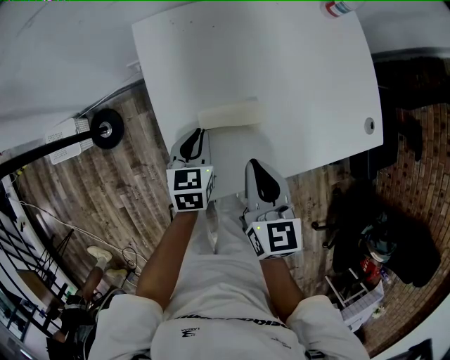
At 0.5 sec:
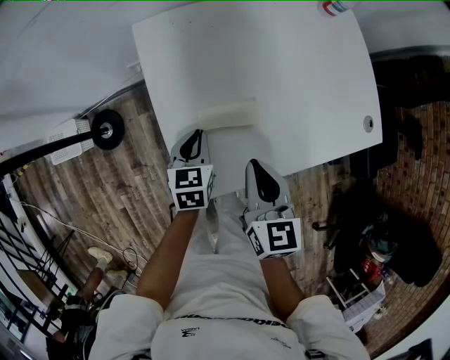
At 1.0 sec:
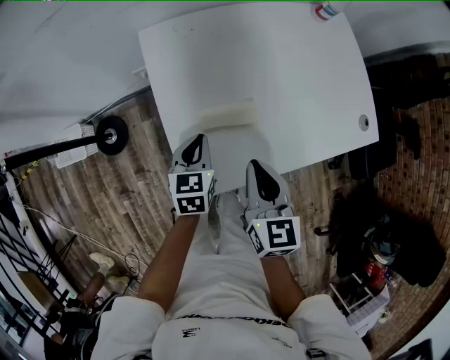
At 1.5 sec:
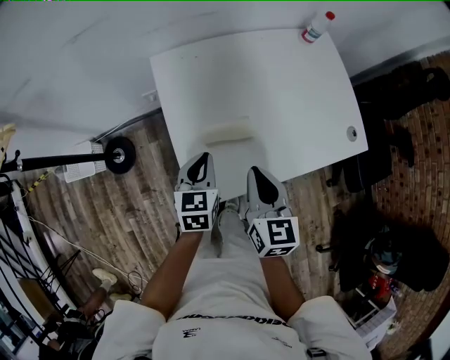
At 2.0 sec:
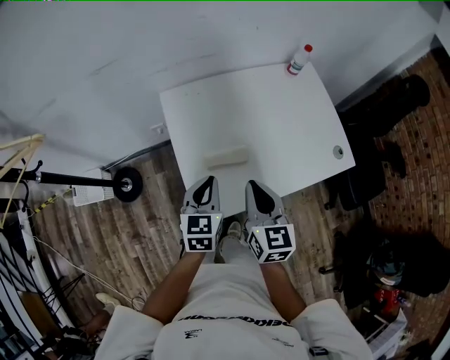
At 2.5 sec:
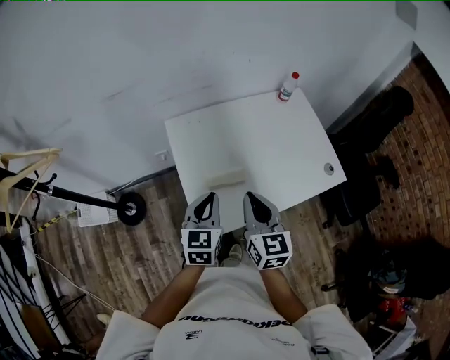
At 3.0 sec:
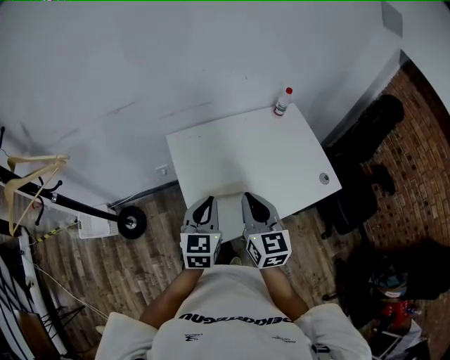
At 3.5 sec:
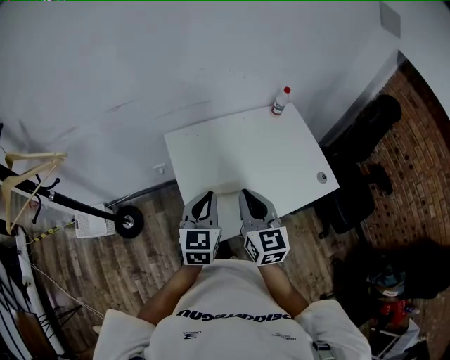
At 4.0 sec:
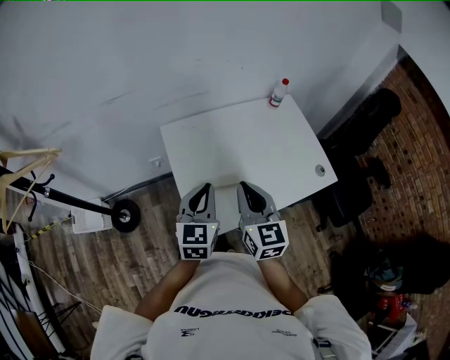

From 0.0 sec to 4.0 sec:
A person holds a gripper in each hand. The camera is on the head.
From 0.0 sec to 2.0 sec: The right gripper heads upward, covering roughly 15 cm, while the left gripper heads upward and backward, covering approximately 20 cm.
From 2.0 sec to 4.0 sec: The two grippers go approximately 10 cm upward.

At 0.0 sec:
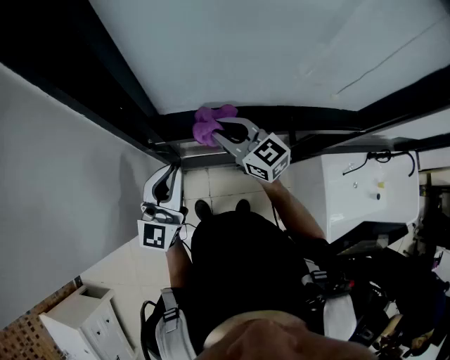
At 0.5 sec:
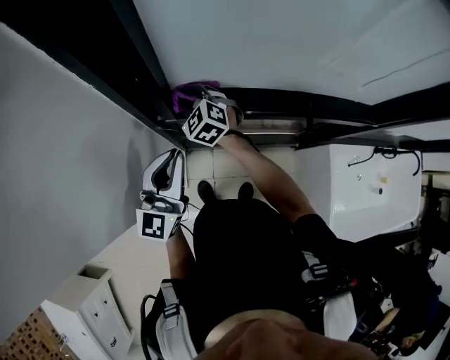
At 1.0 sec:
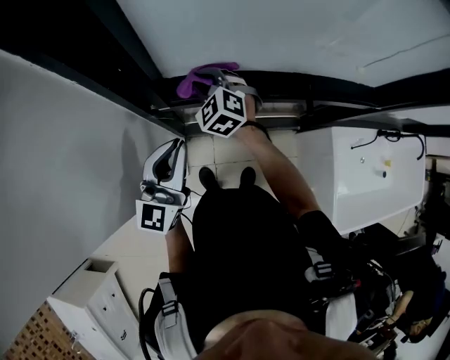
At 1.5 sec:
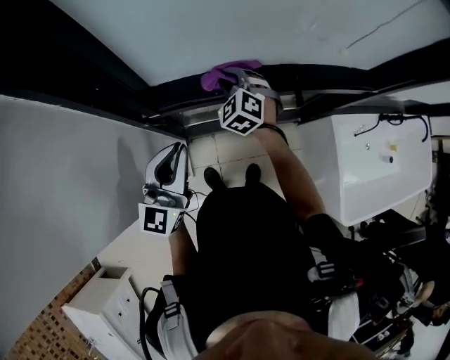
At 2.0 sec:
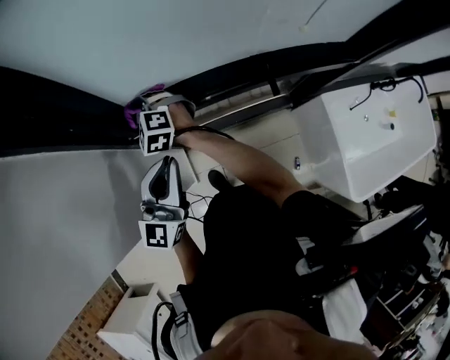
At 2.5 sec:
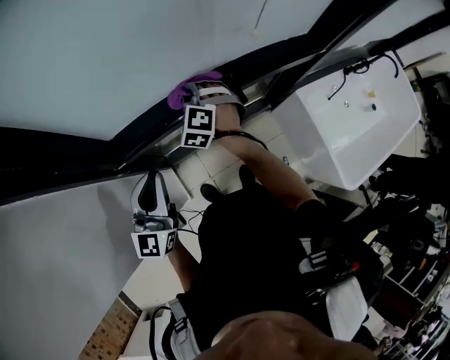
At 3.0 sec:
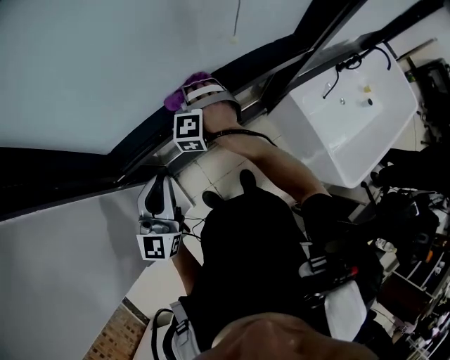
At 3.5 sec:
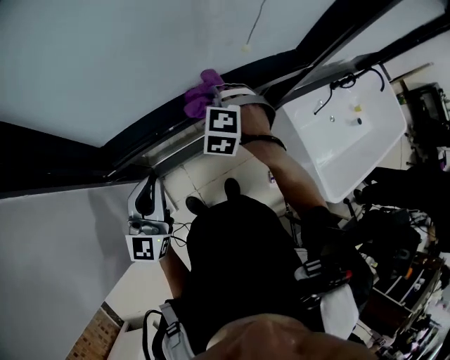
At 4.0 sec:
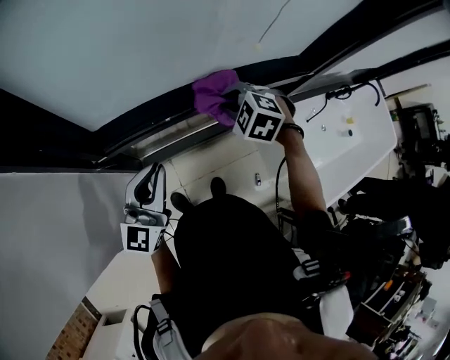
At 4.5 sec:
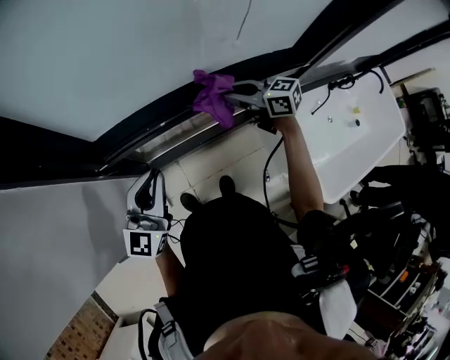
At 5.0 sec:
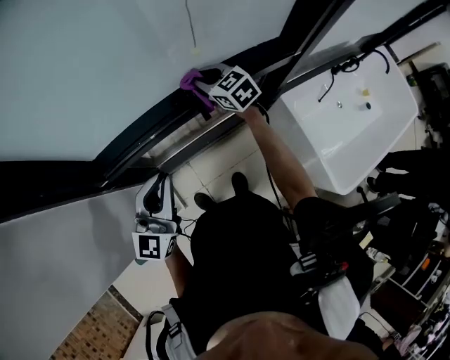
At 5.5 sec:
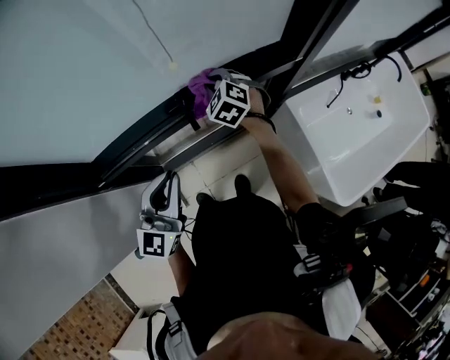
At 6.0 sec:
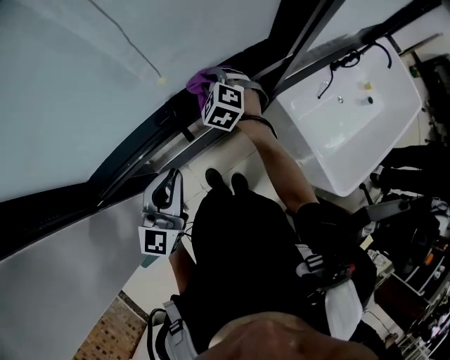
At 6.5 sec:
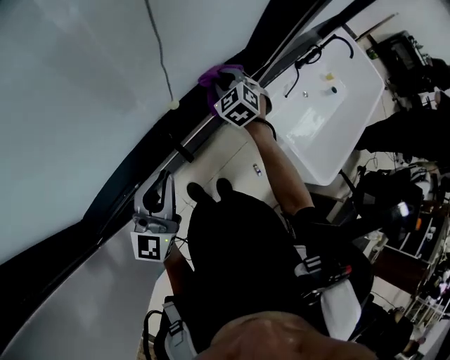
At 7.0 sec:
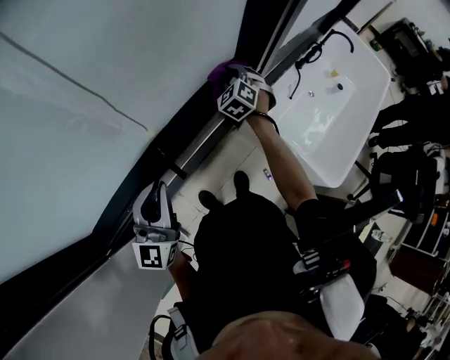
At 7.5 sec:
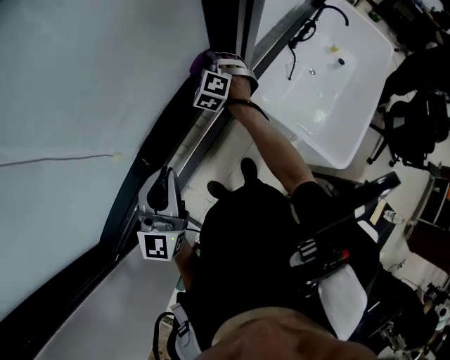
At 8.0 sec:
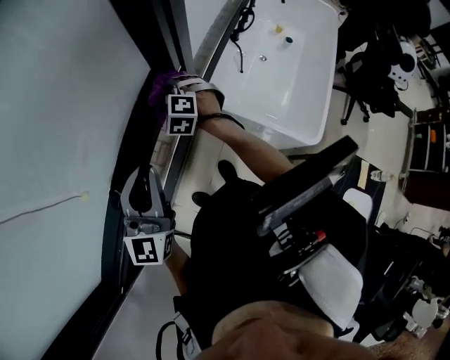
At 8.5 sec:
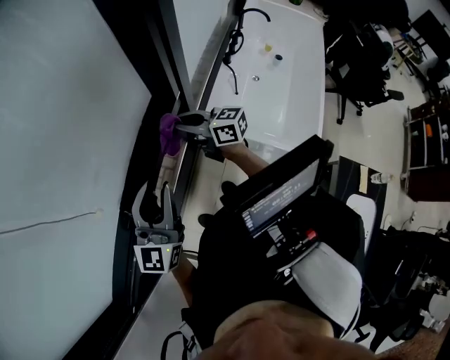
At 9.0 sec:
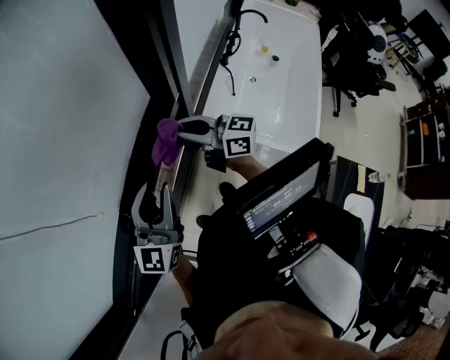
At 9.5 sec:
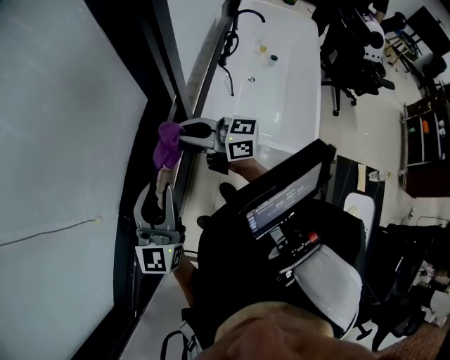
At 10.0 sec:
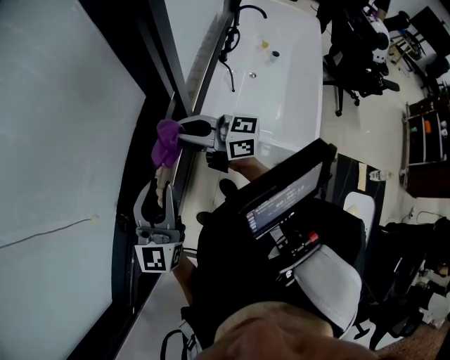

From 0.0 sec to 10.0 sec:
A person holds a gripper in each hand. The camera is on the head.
From 0.0 sec to 2.0 sec: The right gripper swings left and right, roughly 20 cm each way, with 2 reversals, and swivels roughly 40 degrees.
From 2.0 sec to 4.0 sec: The left gripper moves roughly 5 cm. Meanwhile the right gripper changes place by roughly 40 cm, and swivels roughly 30 degrees.
From 4.0 sec to 6.0 sec: The right gripper ends up roughly 20 cm from where it was, and rotates about 30 degrees. Meanwhile the left gripper shifts by some 15 cm.
From 6.0 sec to 8.0 sec: The left gripper ends up about 20 cm from where it was, and rotates approximately 20 degrees, while the right gripper shifts by approximately 25 cm, and rotates some 20 degrees.
From 8.0 sec to 10.0 sec: The right gripper is displaced upward and backward by roughly 20 cm, and points its fingers approximately 60 degrees further upward.

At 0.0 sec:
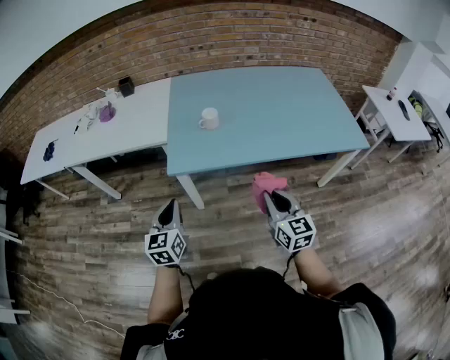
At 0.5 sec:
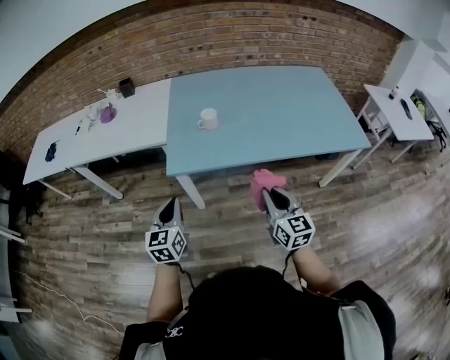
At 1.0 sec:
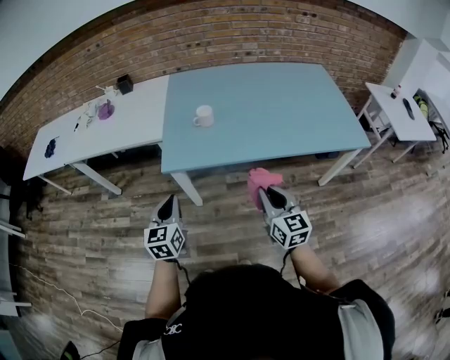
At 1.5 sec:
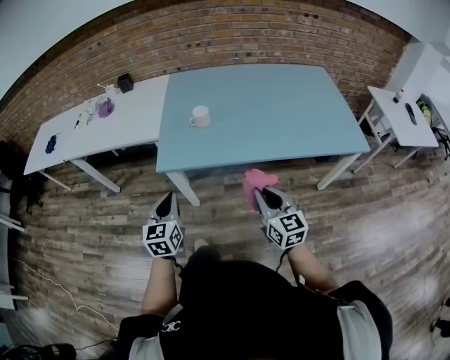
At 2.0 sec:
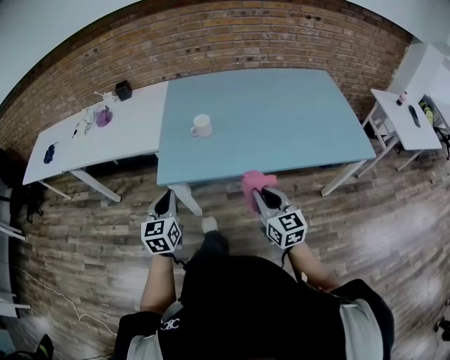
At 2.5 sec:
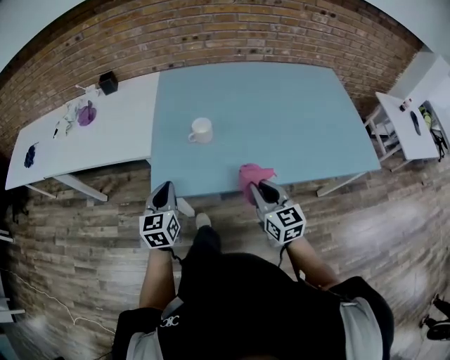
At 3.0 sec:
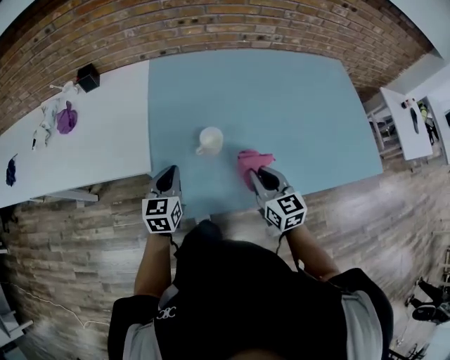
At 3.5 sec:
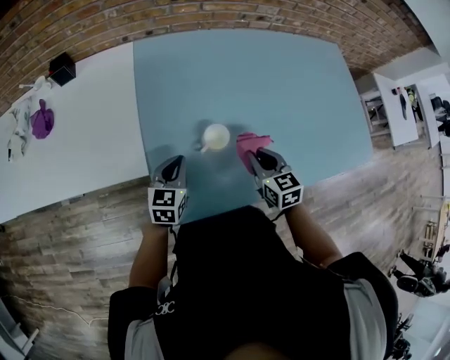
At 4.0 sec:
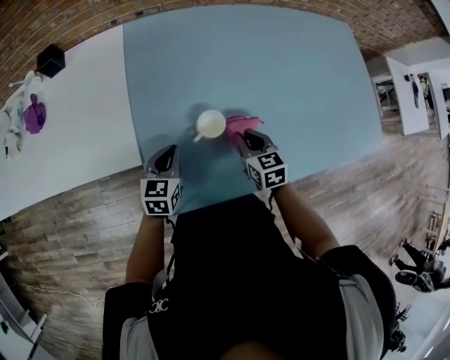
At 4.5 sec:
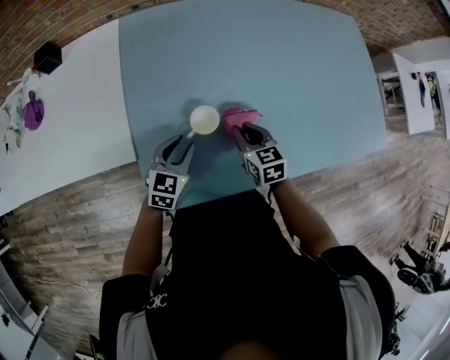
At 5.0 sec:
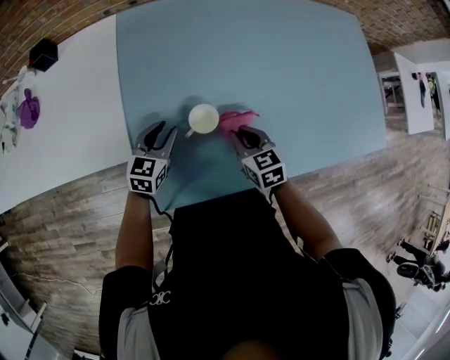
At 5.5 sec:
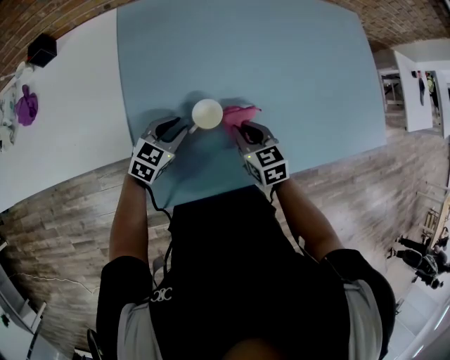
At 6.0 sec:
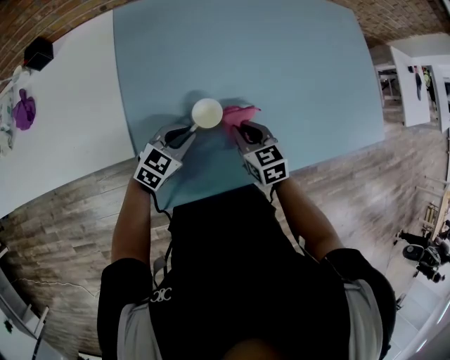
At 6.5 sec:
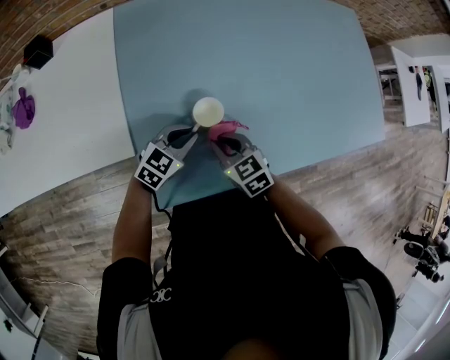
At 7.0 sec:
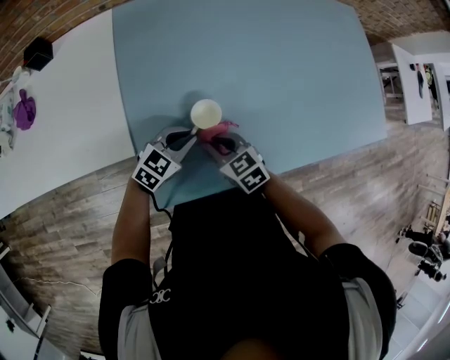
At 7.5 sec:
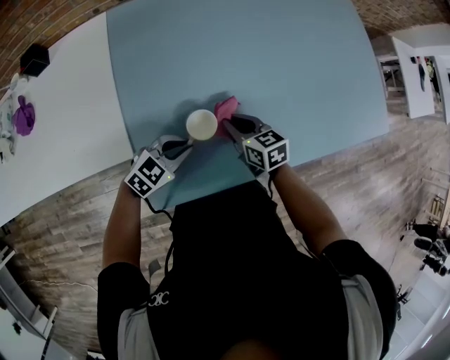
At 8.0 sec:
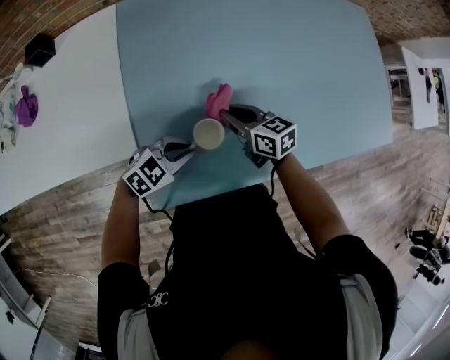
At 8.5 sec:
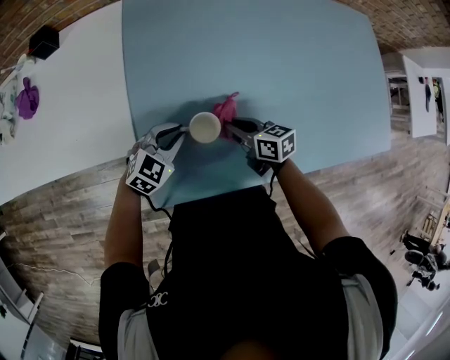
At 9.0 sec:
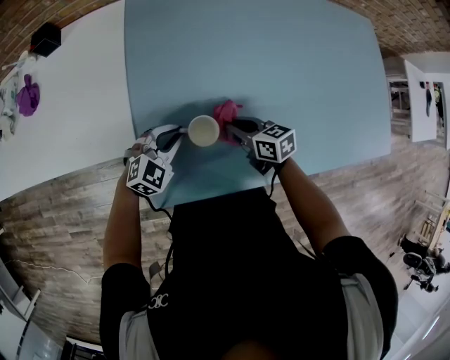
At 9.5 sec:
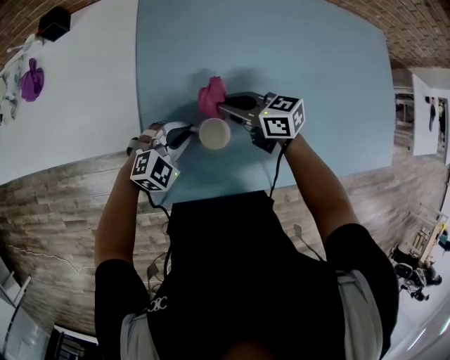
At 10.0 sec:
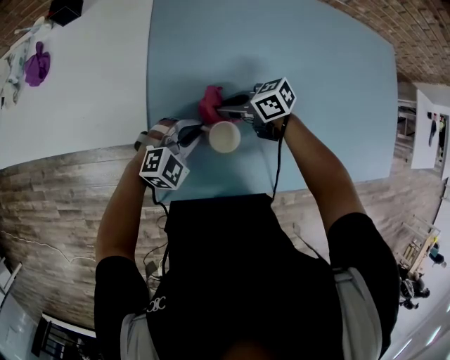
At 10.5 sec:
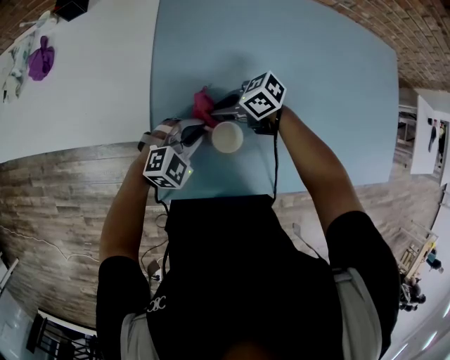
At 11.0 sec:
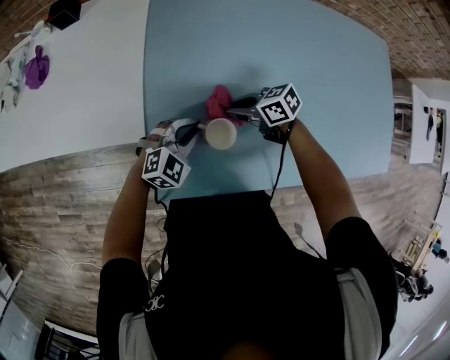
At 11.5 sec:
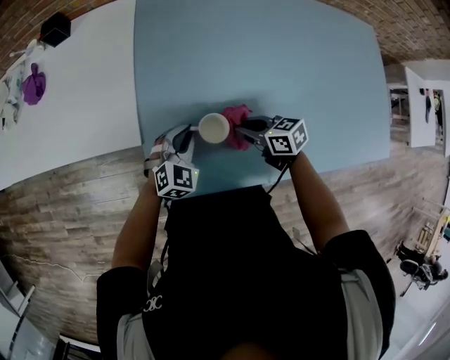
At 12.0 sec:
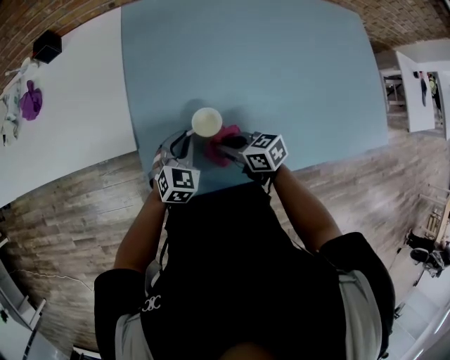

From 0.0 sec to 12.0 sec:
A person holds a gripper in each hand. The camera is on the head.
From 0.0 sec to 2.0 sec: The left gripper goes about 10 cm forward and to the right. Meanwhile the right gripper moves forward, some 5 cm.
From 2.0 sec to 4.0 sec: The two grippers go approximately 30 cm forward. The right gripper changes its angle by roughly 30 degrees; the left gripper swivels roughly 30 degrees.
From 4.0 sec to 6.0 sec: The left gripper moves left and right over roughly 5 cm, changing direction 2 times, and changes its angle by about 30 degrees.
From 6.0 sec to 8.0 sec: The right gripper moves some 5 cm, and swivels some 30 degrees. Meanwhile the left gripper ends up about 5 cm from where it was, and rotates approximately 20 degrees.
From 8.0 sec to 10.0 sec: The right gripper swings up and down, approximately 5 cm each way, with 2 reversals, and turns by some 40 degrees. Meanwhile the left gripper changes place by roughly 5 cm, and turns by about 30 degrees.
From 10.0 sec to 12.0 sec: The left gripper rotates roughly 30 degrees. Meanwhile the right gripper changes place by some 15 cm, and changes its angle by approximately 20 degrees.
